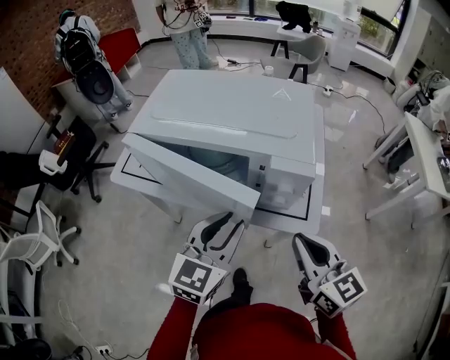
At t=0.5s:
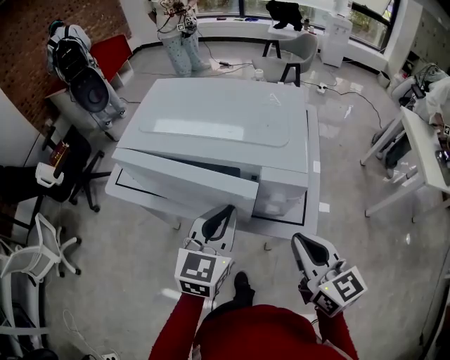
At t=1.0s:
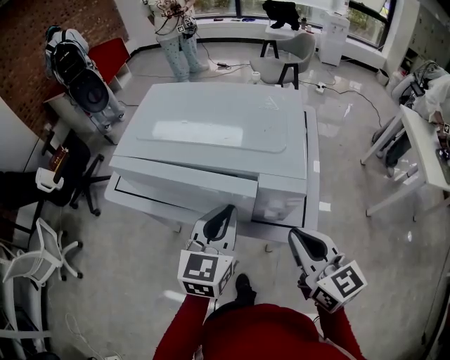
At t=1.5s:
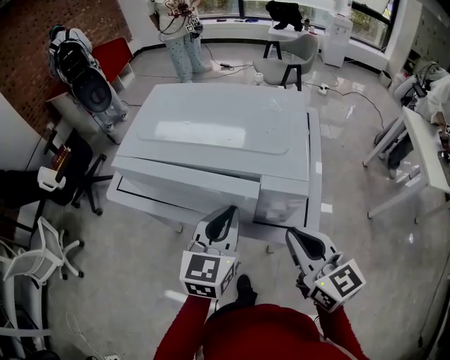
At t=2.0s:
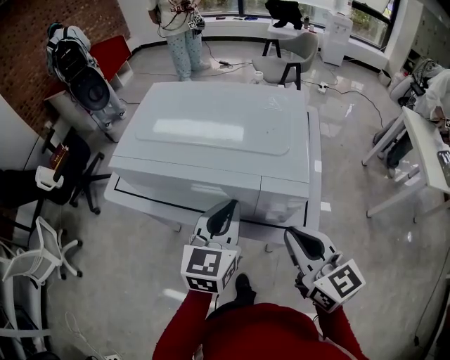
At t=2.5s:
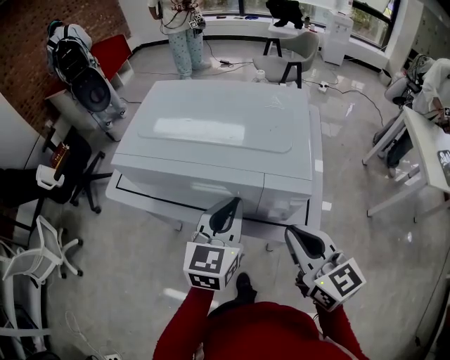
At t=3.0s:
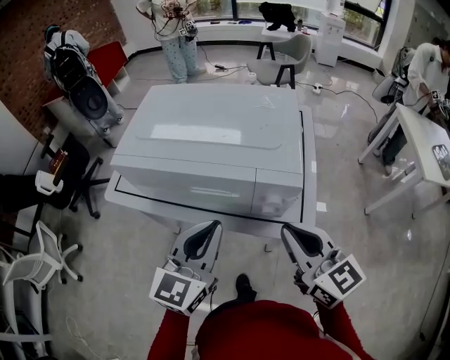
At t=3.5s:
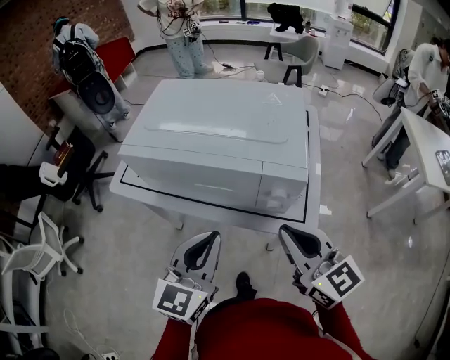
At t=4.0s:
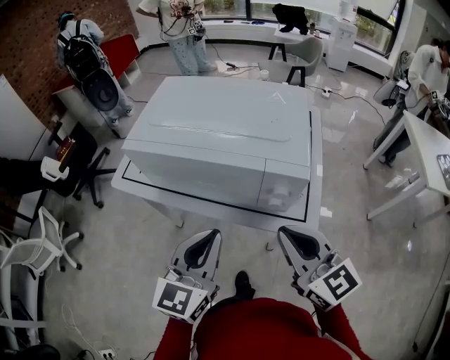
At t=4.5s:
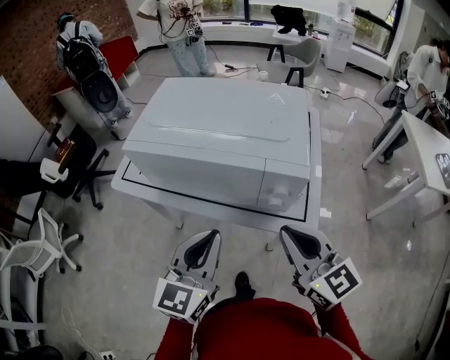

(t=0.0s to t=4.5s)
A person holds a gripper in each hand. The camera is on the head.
t=0.0s - t=2.0s: The left gripper is displaced forward by approximately 5 cm, and closes its fingers.
t=2.0s - t=4.5s: The left gripper moves backward and to the left, approximately 10 cm.

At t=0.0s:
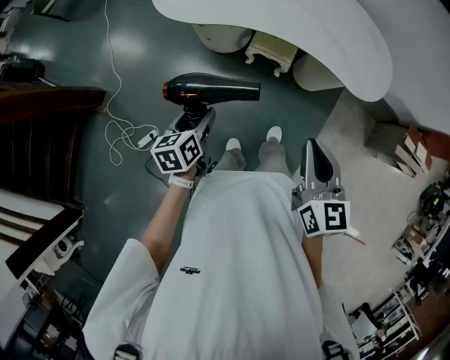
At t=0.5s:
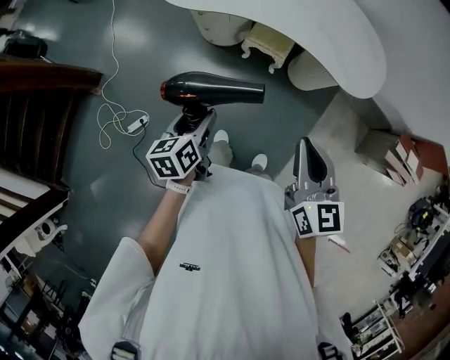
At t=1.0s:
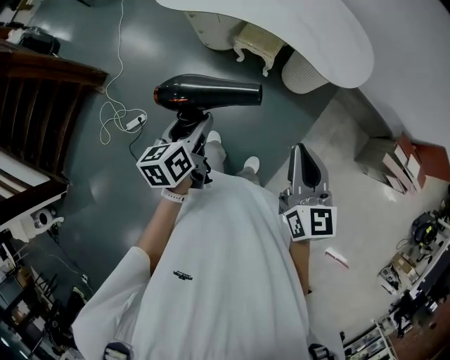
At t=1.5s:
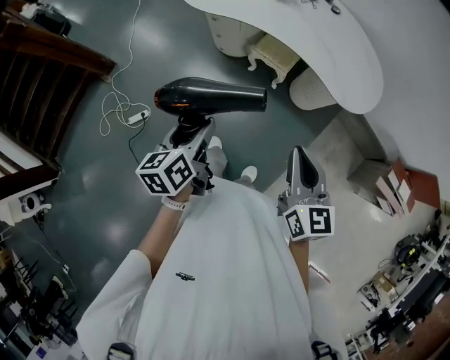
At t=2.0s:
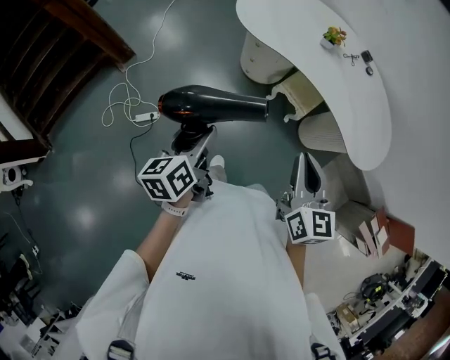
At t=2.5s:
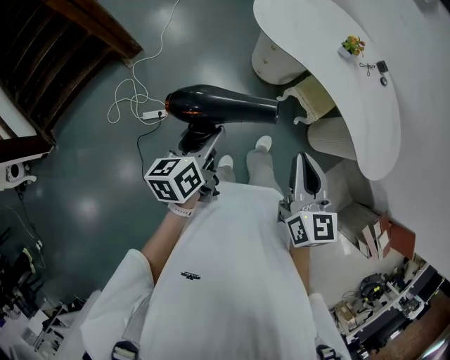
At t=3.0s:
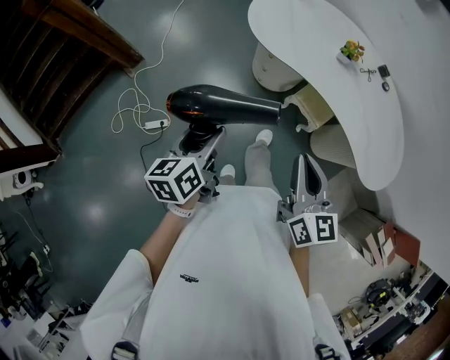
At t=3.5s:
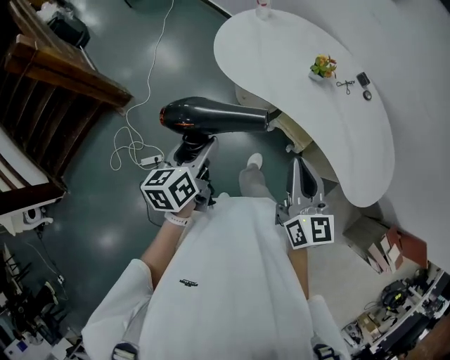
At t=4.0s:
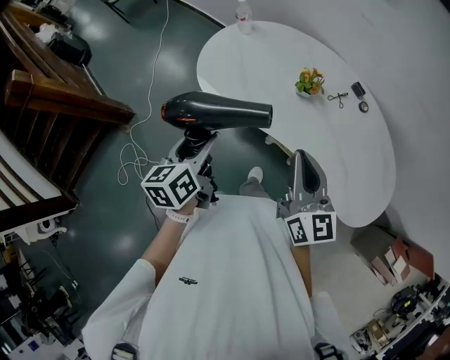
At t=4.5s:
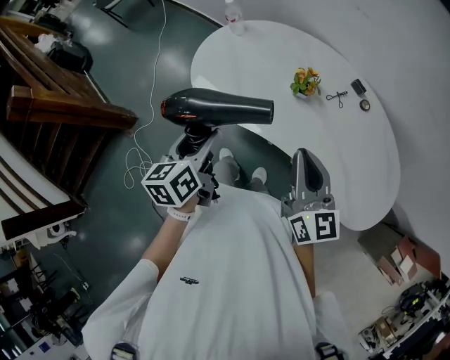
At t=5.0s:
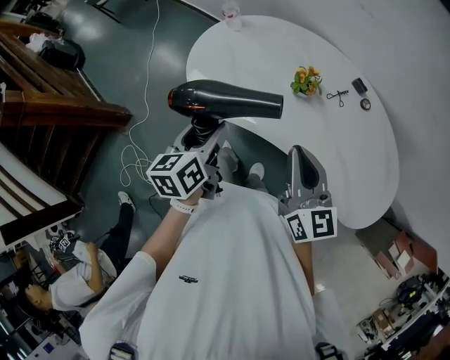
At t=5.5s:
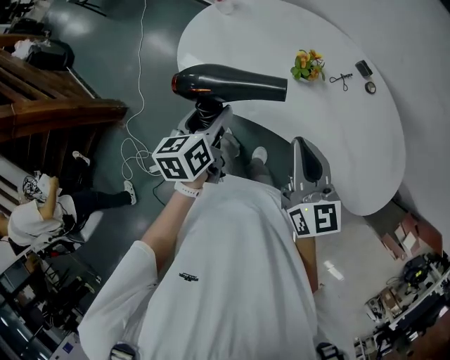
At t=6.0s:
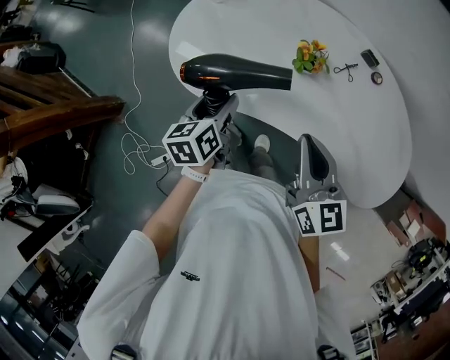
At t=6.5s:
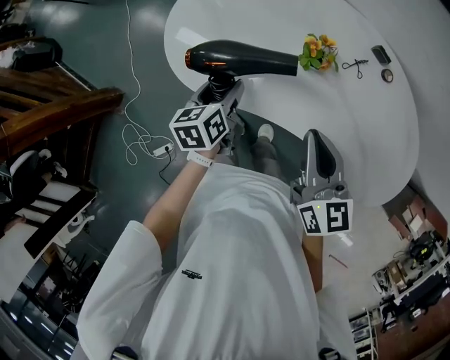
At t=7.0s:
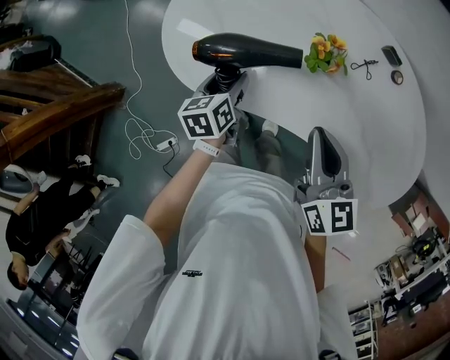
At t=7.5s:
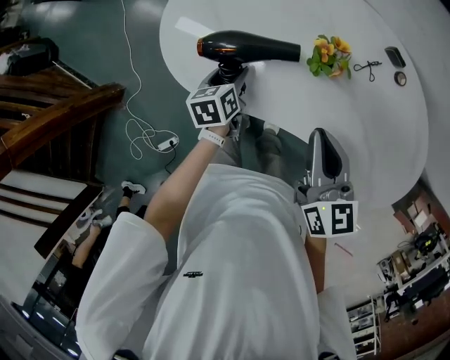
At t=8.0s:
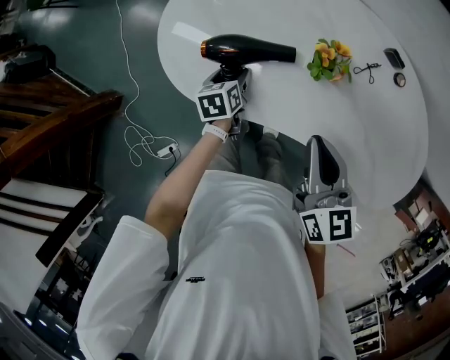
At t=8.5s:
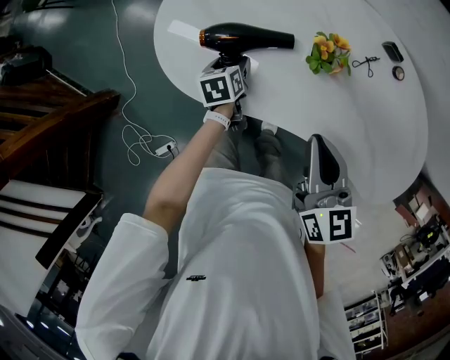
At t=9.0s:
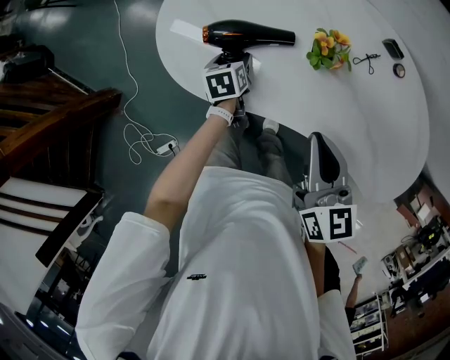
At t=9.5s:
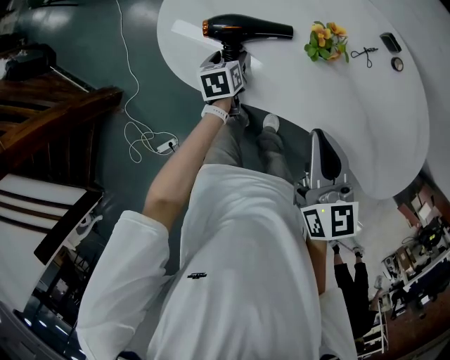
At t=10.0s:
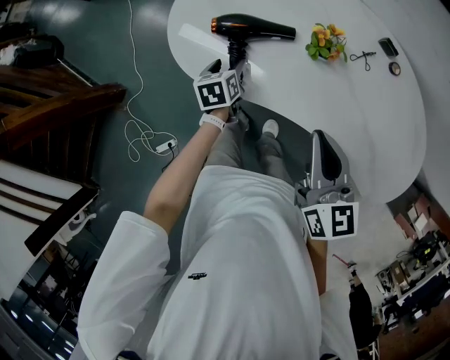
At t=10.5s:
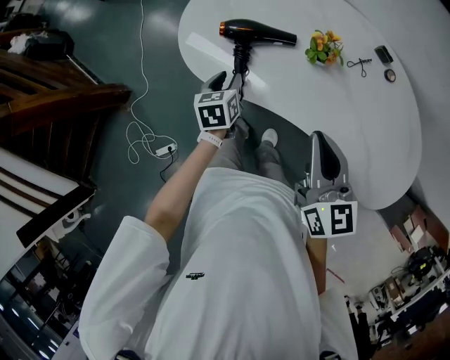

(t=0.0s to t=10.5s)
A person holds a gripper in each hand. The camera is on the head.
t=0.0s - t=2.0s: The right gripper moves approximately 15 cm to the right and comes back. Meanwhile the left gripper goes about 15 cm upward and backward, reaches roughly 15 cm to the right, then returns, and rotates about 30 degrees.
t=2.0s - t=4.0s: Both grippers travel together forward, approximately 35 cm.
t=4.0s - t=6.5s: The left gripper heads forward and downward, covering some 25 cm; the right gripper moves forward and downward, some 15 cm.
t=6.5s - t=8.5s: The left gripper shifts about 15 cm downward and forward.
t=8.5s - t=10.5s: The left gripper goes about 15 cm backward and upward, and closes up. The right gripper is displaced backward by approximately 5 cm.

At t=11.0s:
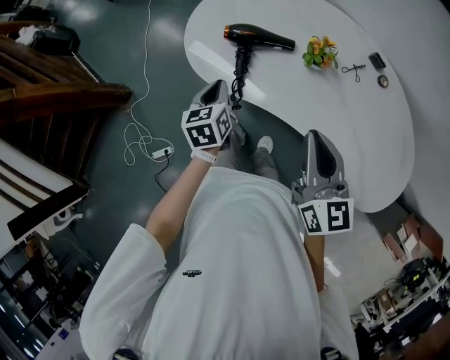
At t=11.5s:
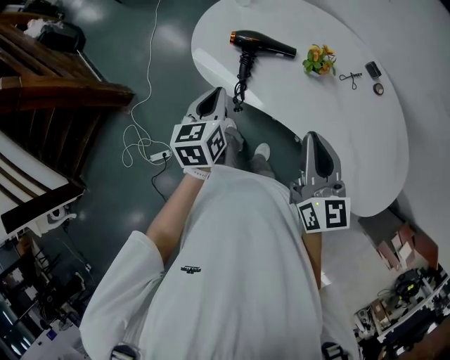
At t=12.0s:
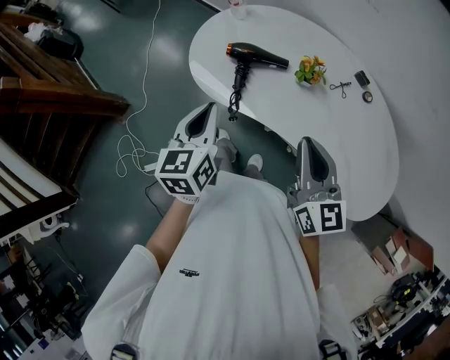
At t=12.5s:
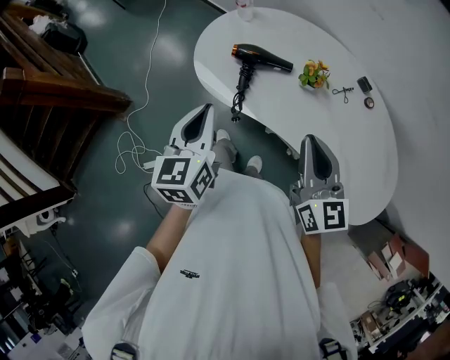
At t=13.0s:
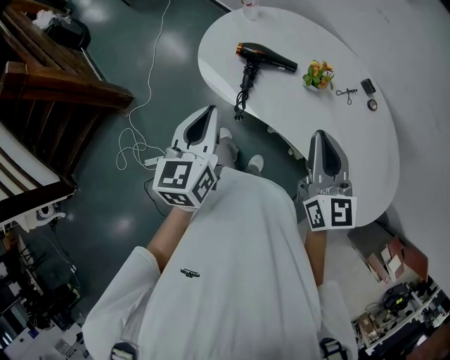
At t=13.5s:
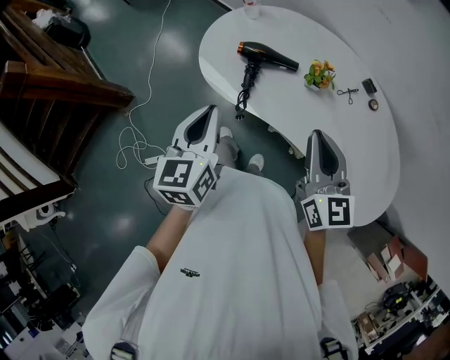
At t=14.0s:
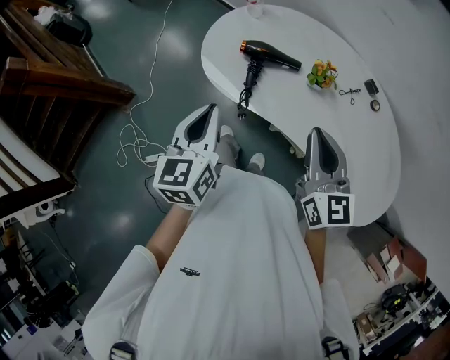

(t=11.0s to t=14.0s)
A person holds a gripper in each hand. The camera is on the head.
t=11.0s - t=12.5s: The left gripper shifts roughly 20 cm upward and backward.
t=12.5s - t=14.0s: The grippers move only a little.

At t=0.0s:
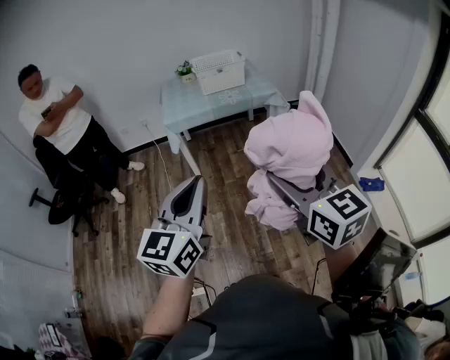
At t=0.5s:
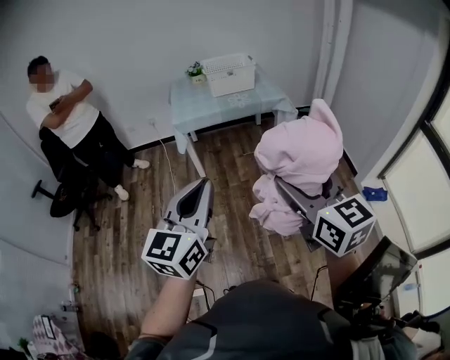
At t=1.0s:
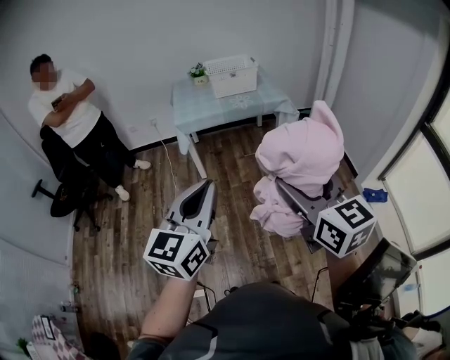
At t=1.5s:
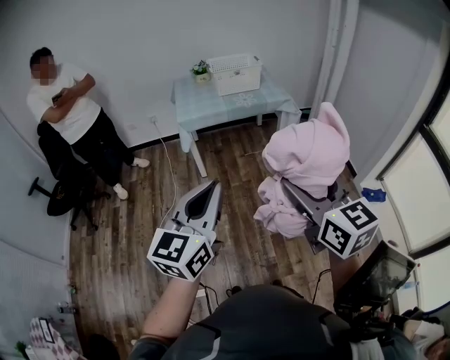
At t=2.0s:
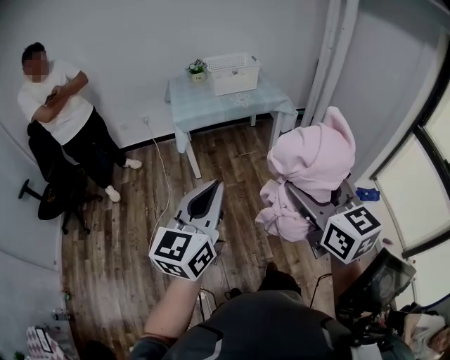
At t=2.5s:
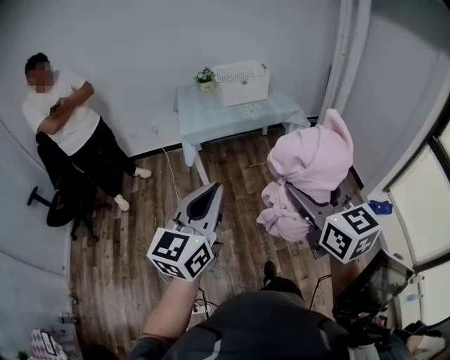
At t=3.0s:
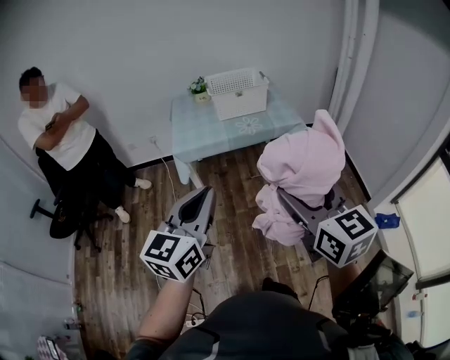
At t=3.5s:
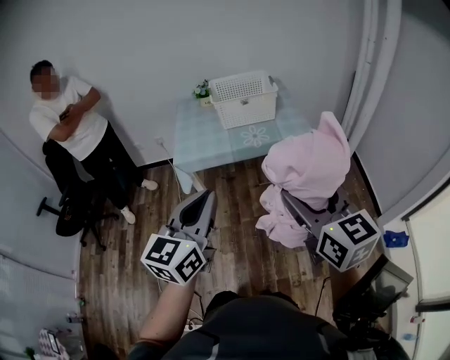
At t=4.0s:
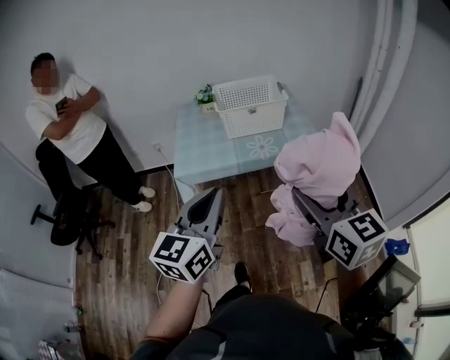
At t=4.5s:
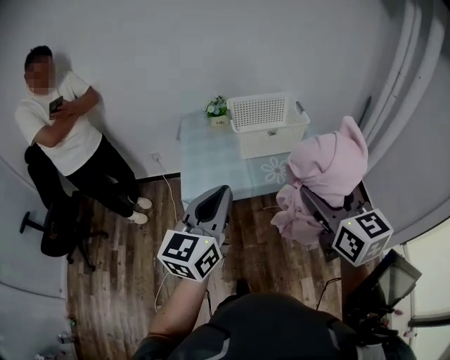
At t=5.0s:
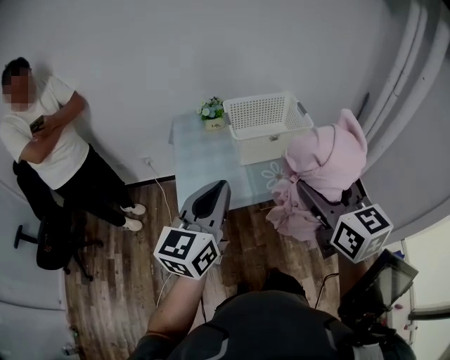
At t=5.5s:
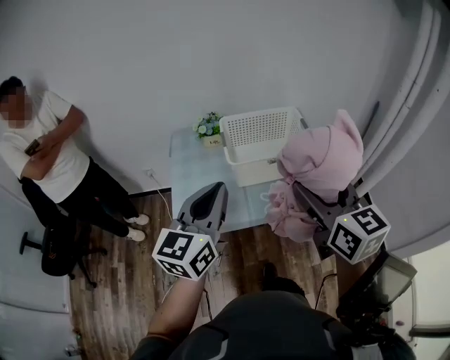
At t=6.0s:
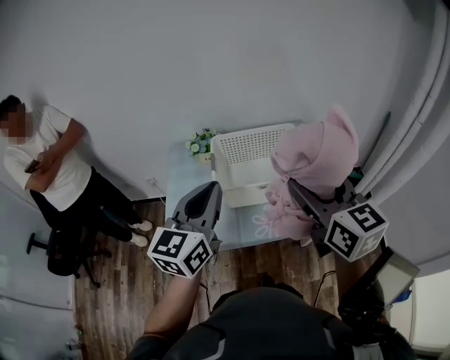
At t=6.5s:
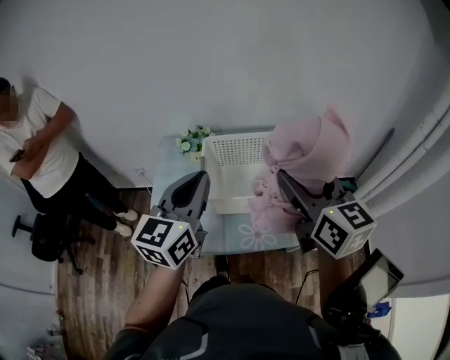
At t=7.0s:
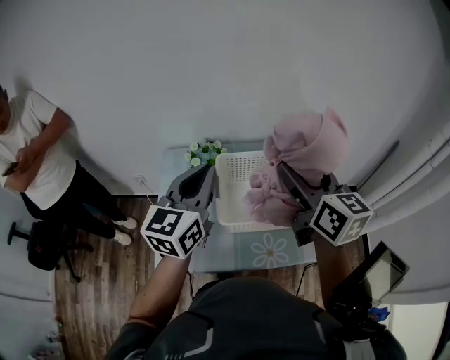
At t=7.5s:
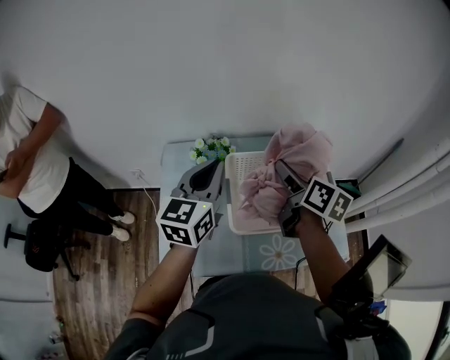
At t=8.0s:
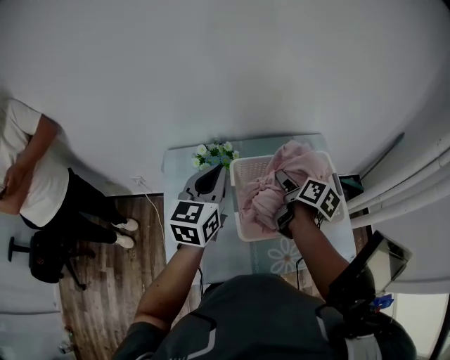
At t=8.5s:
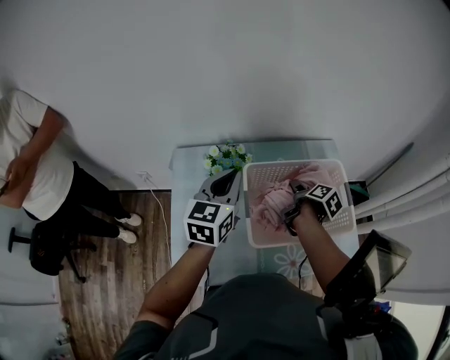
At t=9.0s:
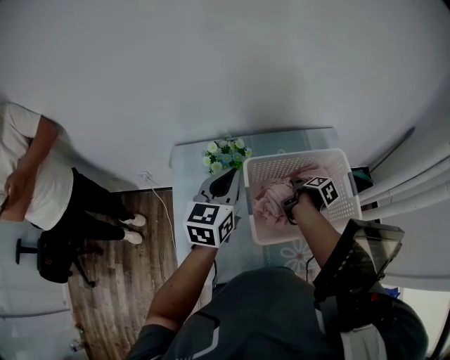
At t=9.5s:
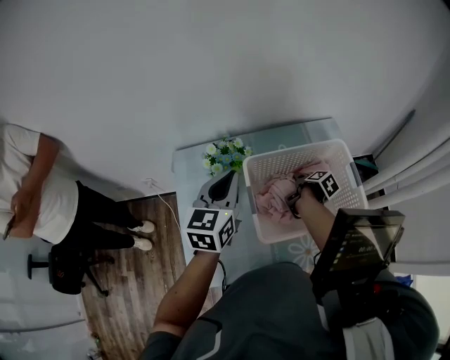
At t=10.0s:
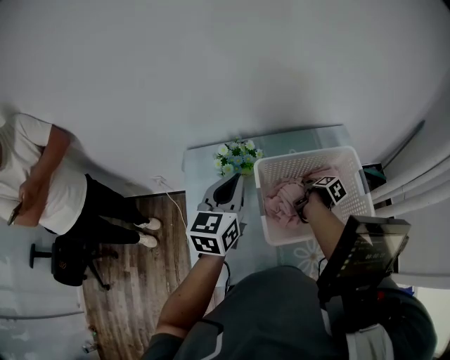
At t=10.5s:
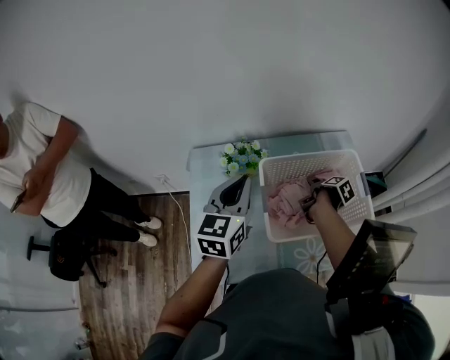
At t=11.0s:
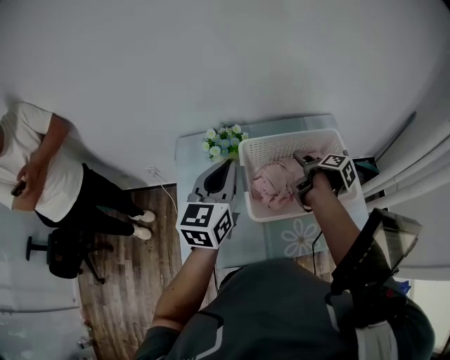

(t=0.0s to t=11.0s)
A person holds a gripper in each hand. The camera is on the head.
t=0.0s - t=2.0s: There are only small adjustments of the grippers.
t=2.0s - t=3.5s: Both grippers move forward, about 30 cm.
t=3.5s - t=5.5s: Both grippers travel together forward, about 35 cm.
t=5.5s - t=7.5s: The two grippers go some 30 cm forward. The right gripper changes its angle by approximately 40 degrees.
t=7.5s - t=9.0s: The right gripper goes approximately 25 cm downward, and points its fingers some 40 degrees further downward, while the left gripper shifts roughly 5 cm downward.
t=9.0s - t=11.0s: The left gripper goes some 5 cm backward; the right gripper shifts some 10 cm upward.
